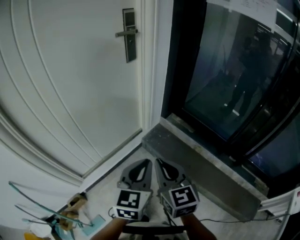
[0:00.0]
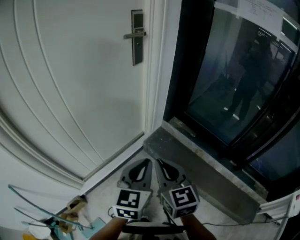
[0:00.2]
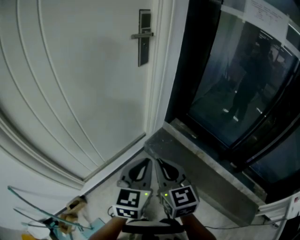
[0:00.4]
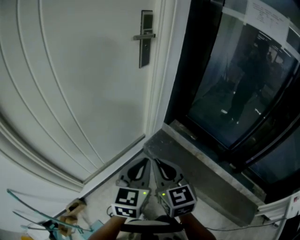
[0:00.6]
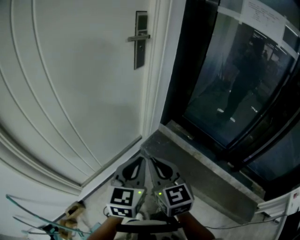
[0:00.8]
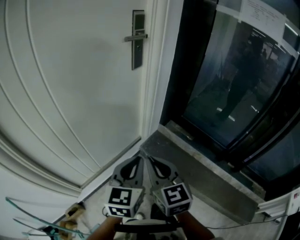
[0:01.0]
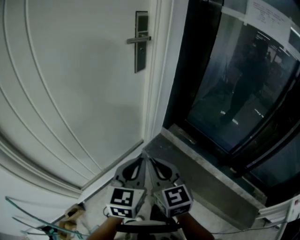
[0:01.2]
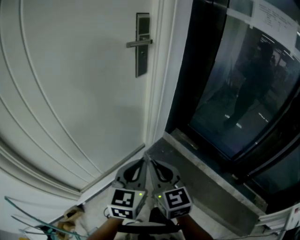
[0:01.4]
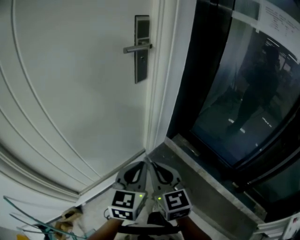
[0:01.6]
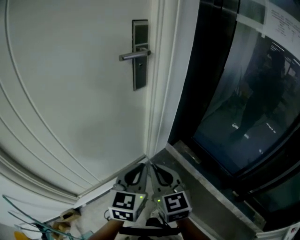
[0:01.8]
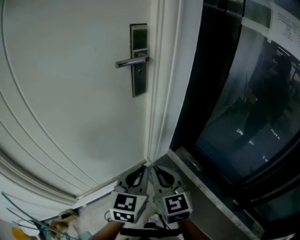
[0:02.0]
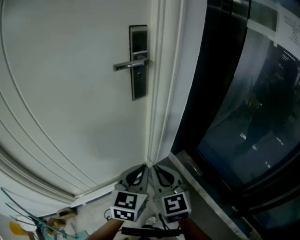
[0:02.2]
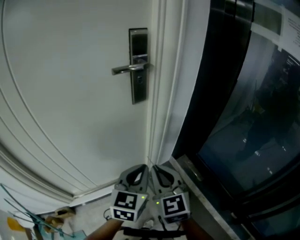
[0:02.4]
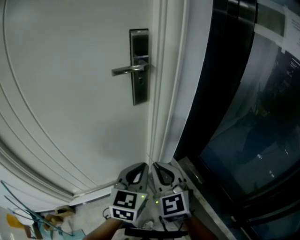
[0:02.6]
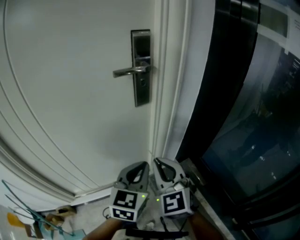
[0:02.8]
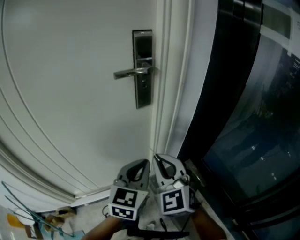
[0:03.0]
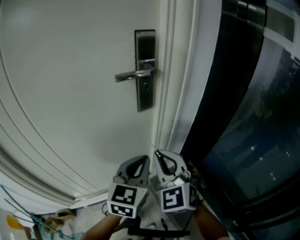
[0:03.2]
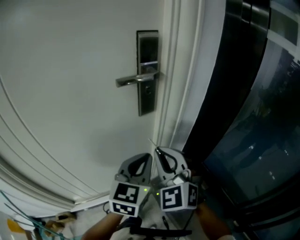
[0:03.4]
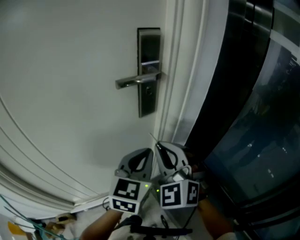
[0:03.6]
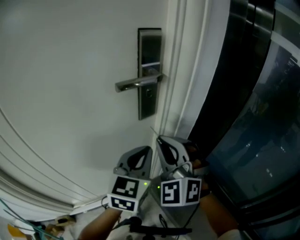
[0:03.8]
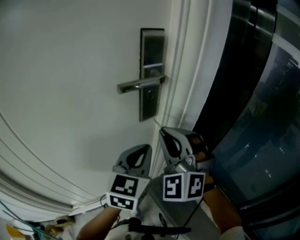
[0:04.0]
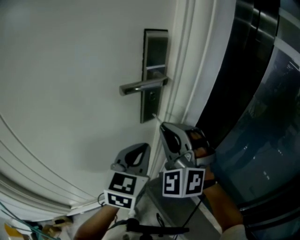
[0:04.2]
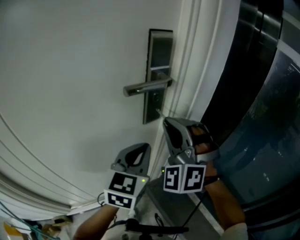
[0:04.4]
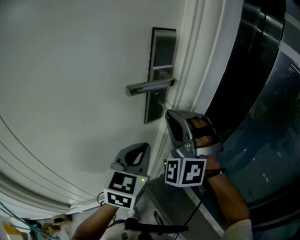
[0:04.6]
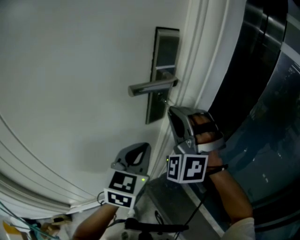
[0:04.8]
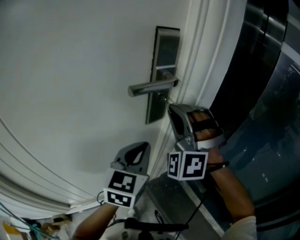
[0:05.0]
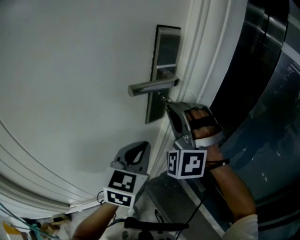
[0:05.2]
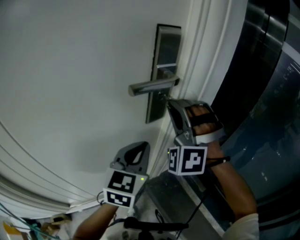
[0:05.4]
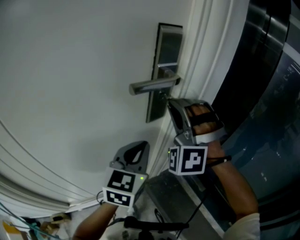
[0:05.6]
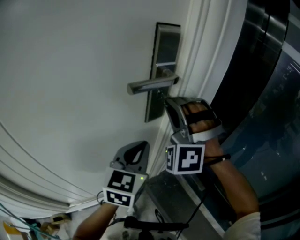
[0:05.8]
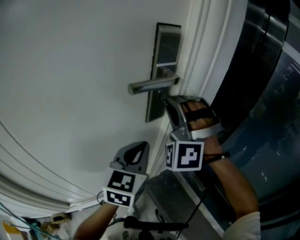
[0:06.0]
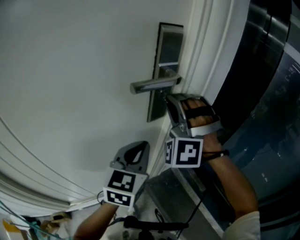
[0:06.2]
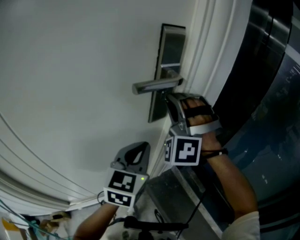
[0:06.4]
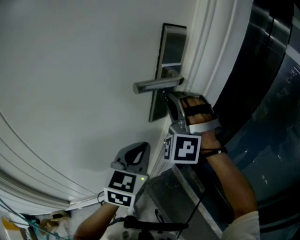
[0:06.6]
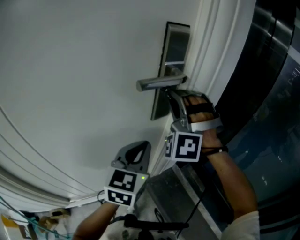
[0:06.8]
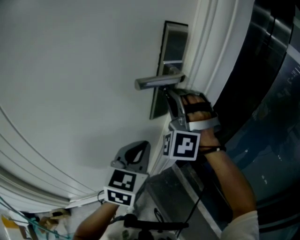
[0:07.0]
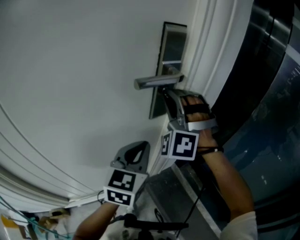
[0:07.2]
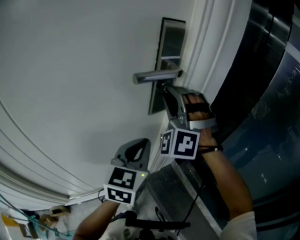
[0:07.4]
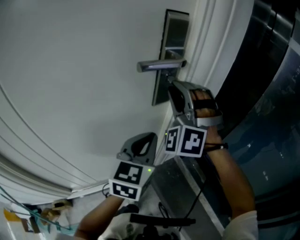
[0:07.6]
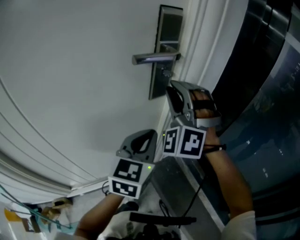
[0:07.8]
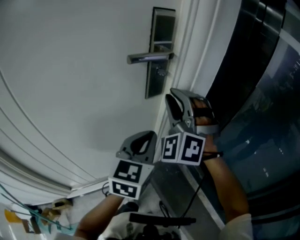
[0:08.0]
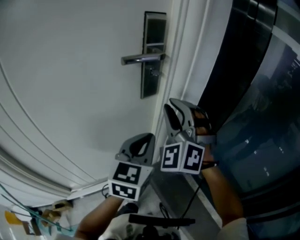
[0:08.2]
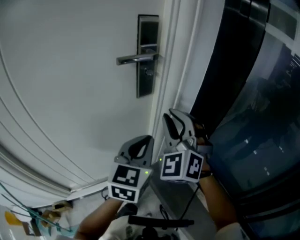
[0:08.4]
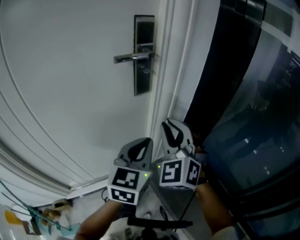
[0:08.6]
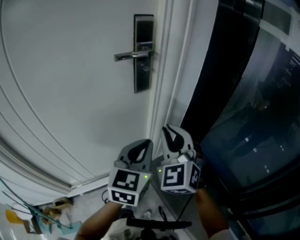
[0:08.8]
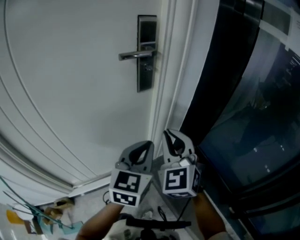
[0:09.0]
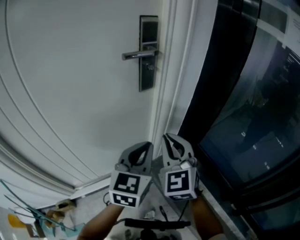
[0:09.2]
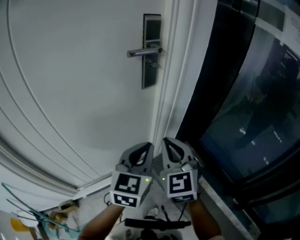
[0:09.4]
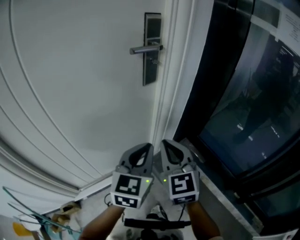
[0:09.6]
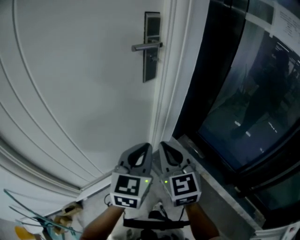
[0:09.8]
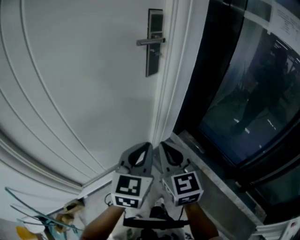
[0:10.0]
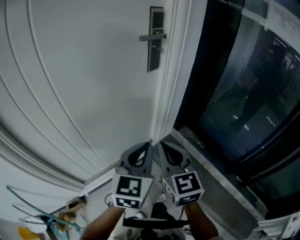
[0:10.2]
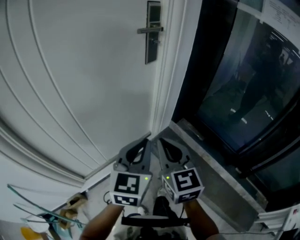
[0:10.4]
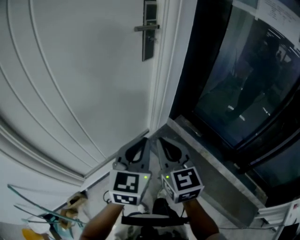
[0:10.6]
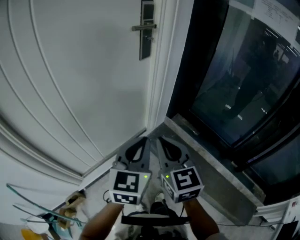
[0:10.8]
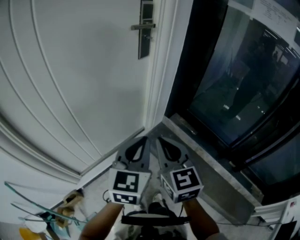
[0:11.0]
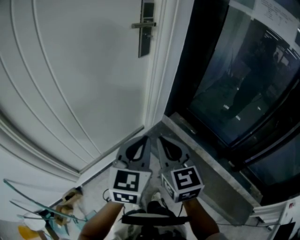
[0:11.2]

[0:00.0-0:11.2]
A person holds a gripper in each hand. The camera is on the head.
0:00.0 to 0:01.6: Both grippers move forward, approximately 15 cm.
0:01.6 to 0:03.2: The right gripper shifts approximately 20 cm forward and upward, and changes its angle by some 40 degrees; the left gripper goes some 15 cm forward.
0:03.2 to 0:04.8: The right gripper is displaced forward and upward by some 20 cm, and rolls counterclockwise, seen from behind, by roughly 50 degrees, while the left gripper moves forward, approximately 10 cm.
0:04.8 to 0:06.4: The grippers stay close to where they were, moving slightly.
0:06.4 to 0:08.0: Both grippers travel together backward, roughly 5 cm. The right gripper changes its angle by some 20 degrees.
0:08.0 to 0:09.6: The left gripper moves backward, roughly 15 cm. Meanwhile the right gripper heads backward and downward, covering about 25 cm, and twists about 60 degrees clockwise, seen from behind.
0:09.6 to 0:11.2: The grippers both shift backward by about 15 cm.

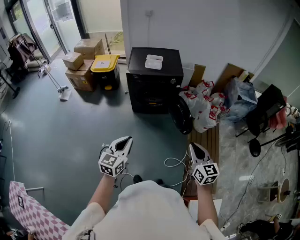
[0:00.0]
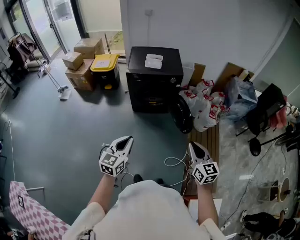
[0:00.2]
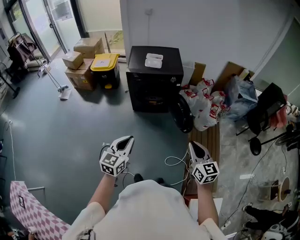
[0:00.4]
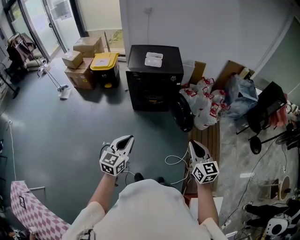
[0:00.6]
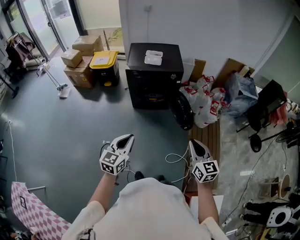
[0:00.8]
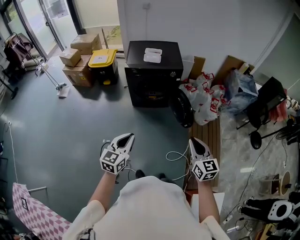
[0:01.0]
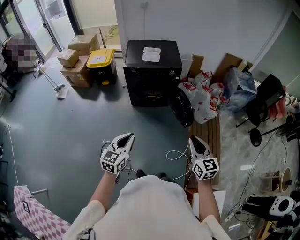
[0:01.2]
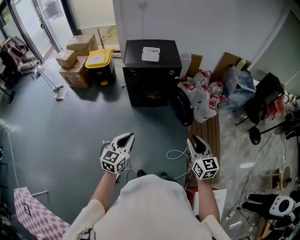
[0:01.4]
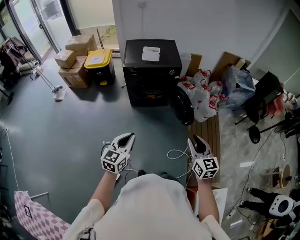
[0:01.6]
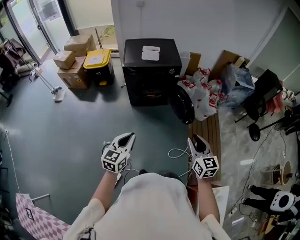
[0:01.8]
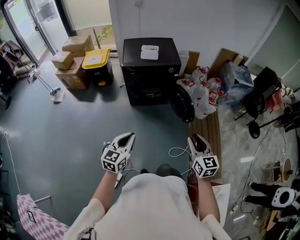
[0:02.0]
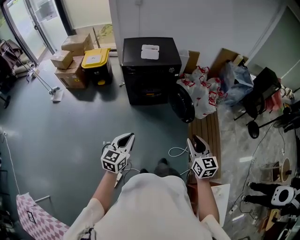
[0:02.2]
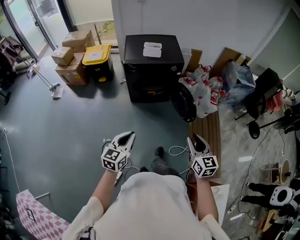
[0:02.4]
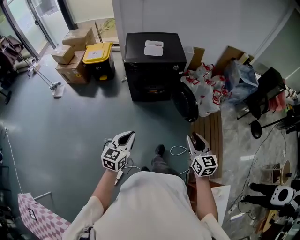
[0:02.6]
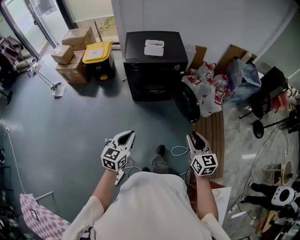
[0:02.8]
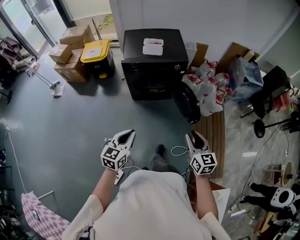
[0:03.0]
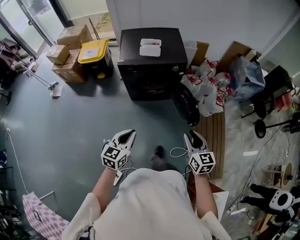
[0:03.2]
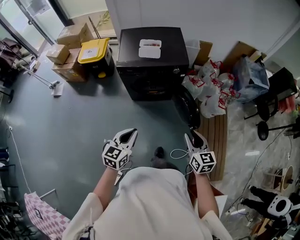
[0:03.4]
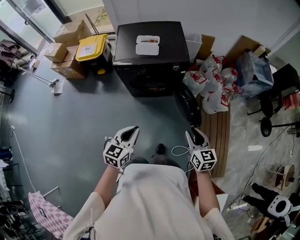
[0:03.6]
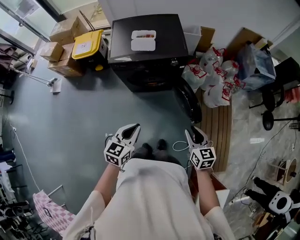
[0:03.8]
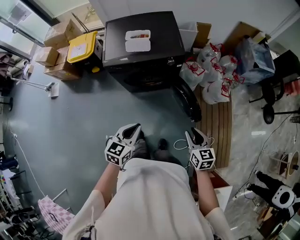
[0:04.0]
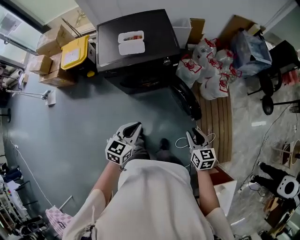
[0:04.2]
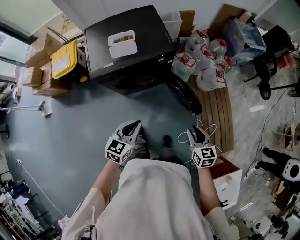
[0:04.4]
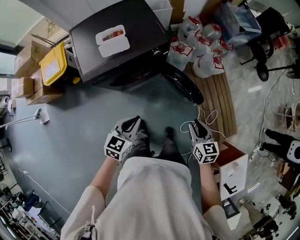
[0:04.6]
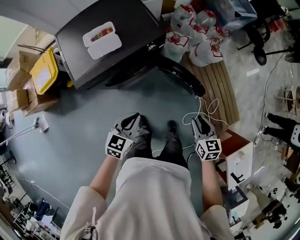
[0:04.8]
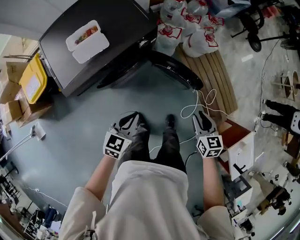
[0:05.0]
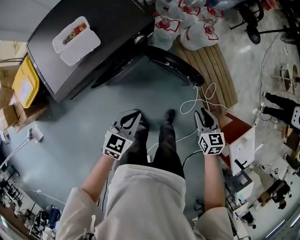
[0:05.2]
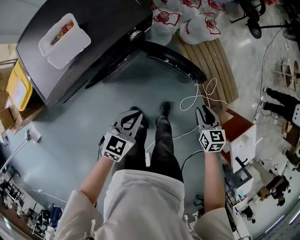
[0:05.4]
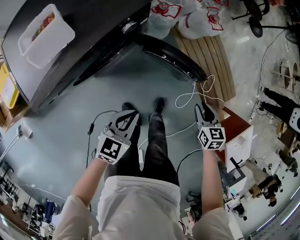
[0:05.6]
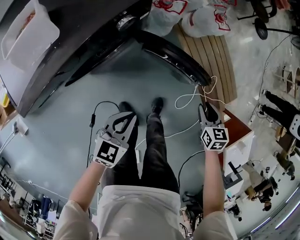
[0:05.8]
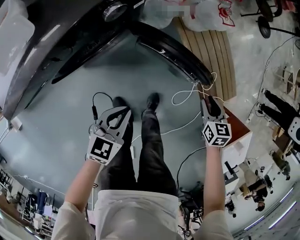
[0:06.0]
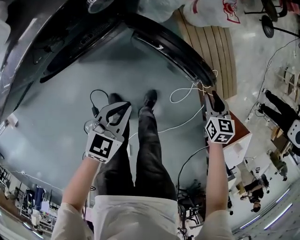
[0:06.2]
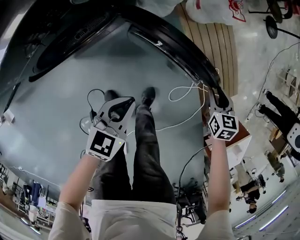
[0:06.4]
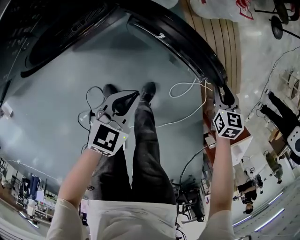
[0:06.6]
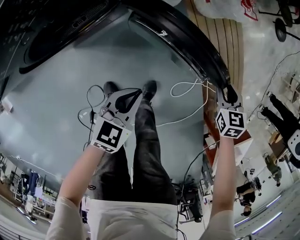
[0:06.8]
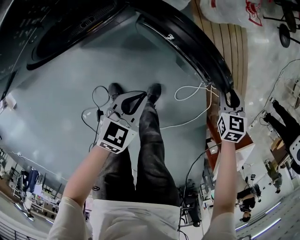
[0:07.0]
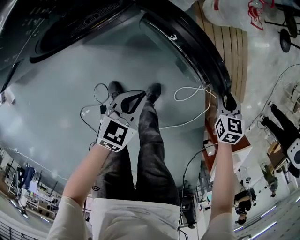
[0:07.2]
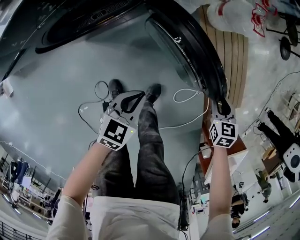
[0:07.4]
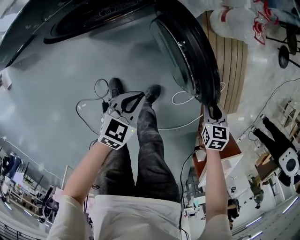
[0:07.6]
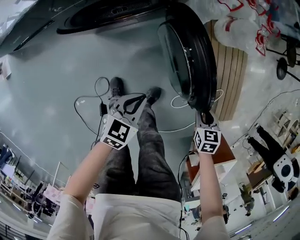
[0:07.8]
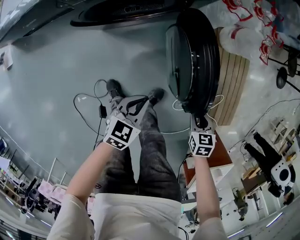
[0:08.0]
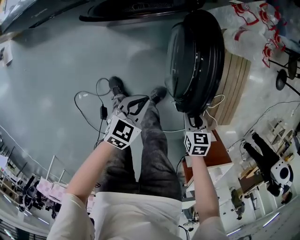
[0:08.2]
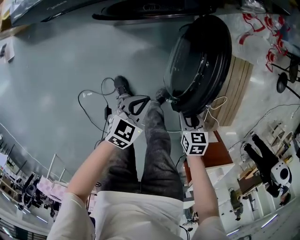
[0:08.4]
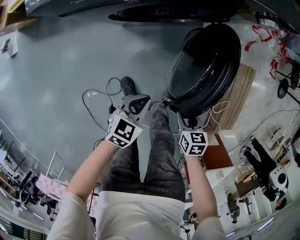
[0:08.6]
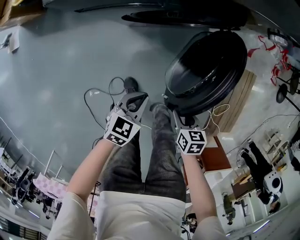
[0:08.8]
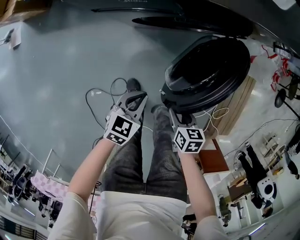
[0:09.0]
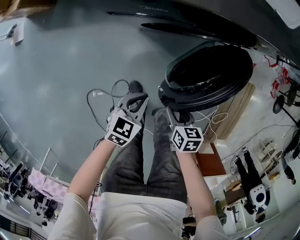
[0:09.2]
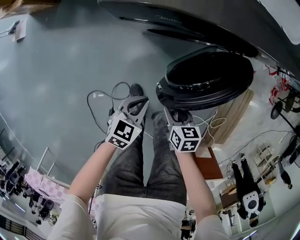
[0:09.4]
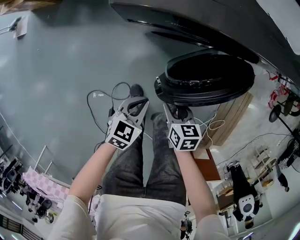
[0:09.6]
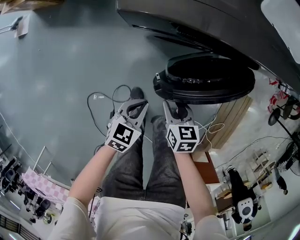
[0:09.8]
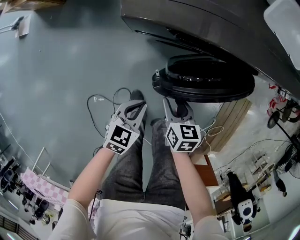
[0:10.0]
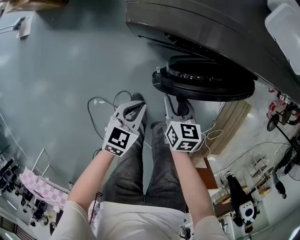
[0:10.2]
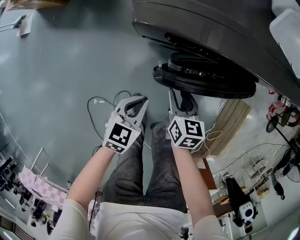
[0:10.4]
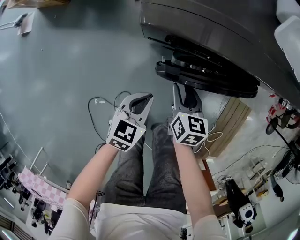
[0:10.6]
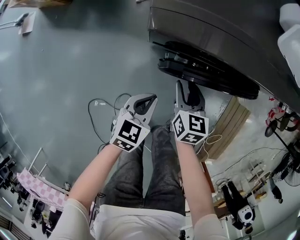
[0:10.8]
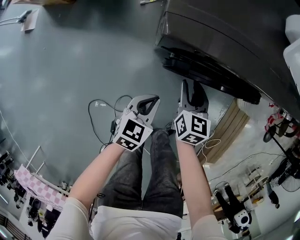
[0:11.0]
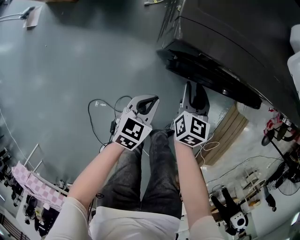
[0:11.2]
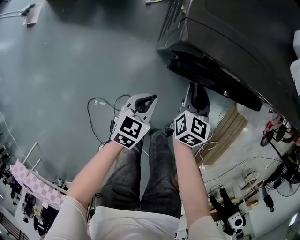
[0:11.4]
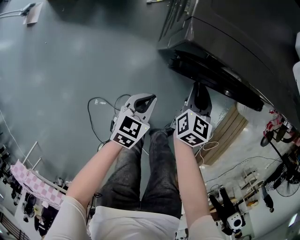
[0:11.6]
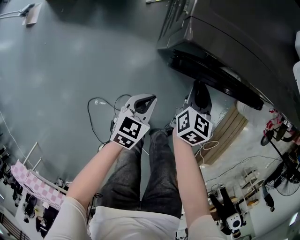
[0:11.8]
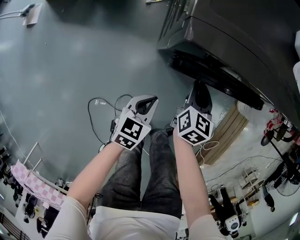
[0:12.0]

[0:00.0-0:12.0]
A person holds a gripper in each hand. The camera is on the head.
0:00.0 to 0:01.6: The right gripper opens.
0:01.6 to 0:03.0: The left gripper moves forward, some 10 cm. The right gripper travels forward and downward by about 15 cm.
0:03.0 to 0:04.4: The left gripper shifts about 30 cm forward, and swivels roughly 20 degrees, while the right gripper moves forward and downward, some 25 cm, and swivels about 20 degrees.
0:04.4 to 0:06.0: The two grippers go about 35 cm downward. The left gripper changes its angle by some 30 degrees. Meanwhile the right gripper rotates about 30 degrees.
0:06.0 to 0:07.6: The right gripper moves downward, some 10 cm, while the left gripper is displaced downward and to the right by approximately 15 cm.
0:07.6 to 0:09.0: The right gripper shifts by some 40 cm, and changes its angle by about 20 degrees, while the left gripper ends up approximately 25 cm from where it was.
0:09.0 to 0:10.4: The right gripper shifts some 25 cm forward and to the left, while the left gripper moves to the left and forward, roughly 10 cm.
0:10.4 to 0:12.0: The right gripper is displaced forward by roughly 10 cm, and closes up.
